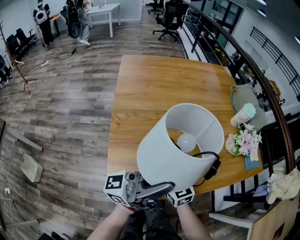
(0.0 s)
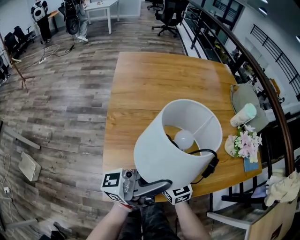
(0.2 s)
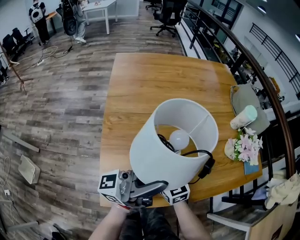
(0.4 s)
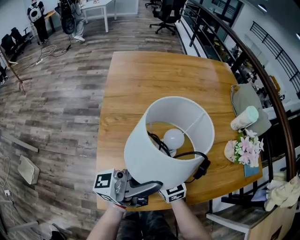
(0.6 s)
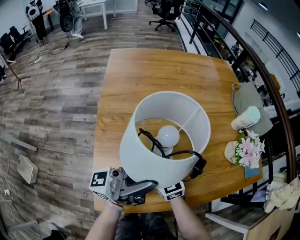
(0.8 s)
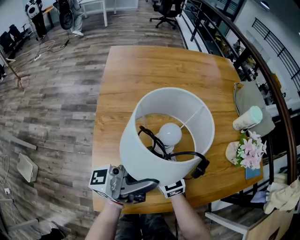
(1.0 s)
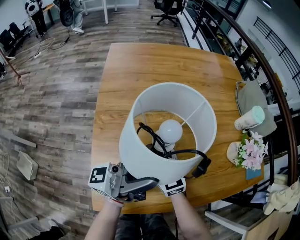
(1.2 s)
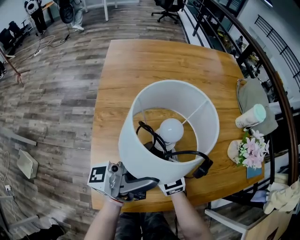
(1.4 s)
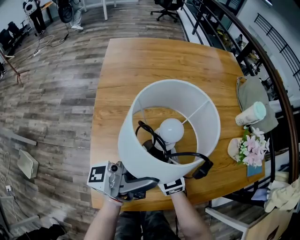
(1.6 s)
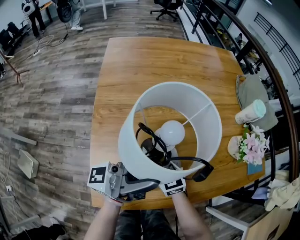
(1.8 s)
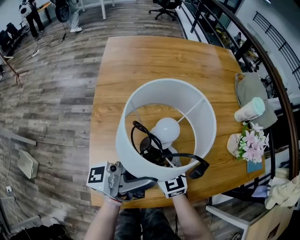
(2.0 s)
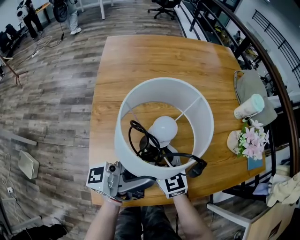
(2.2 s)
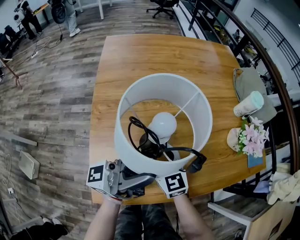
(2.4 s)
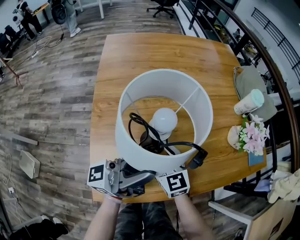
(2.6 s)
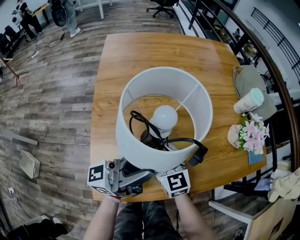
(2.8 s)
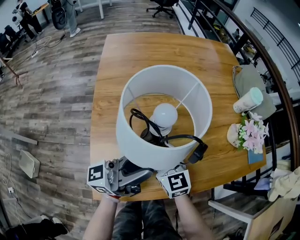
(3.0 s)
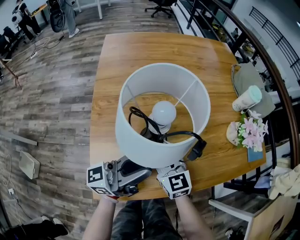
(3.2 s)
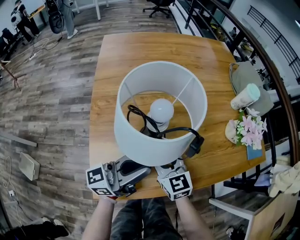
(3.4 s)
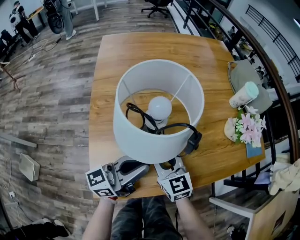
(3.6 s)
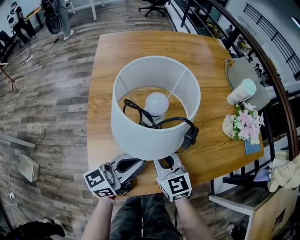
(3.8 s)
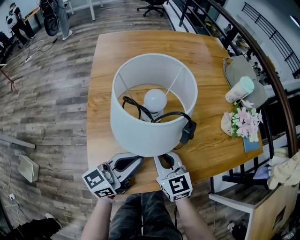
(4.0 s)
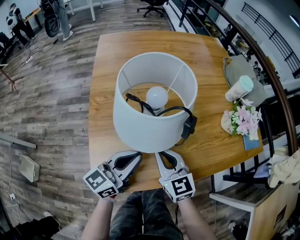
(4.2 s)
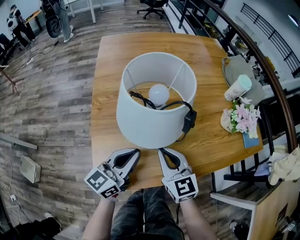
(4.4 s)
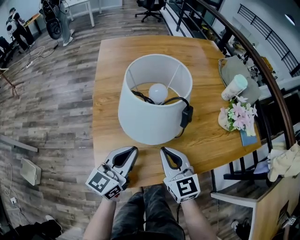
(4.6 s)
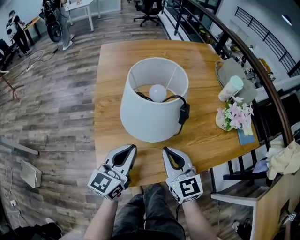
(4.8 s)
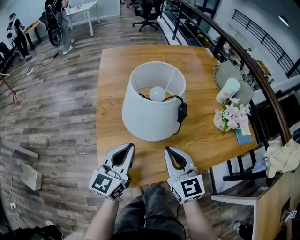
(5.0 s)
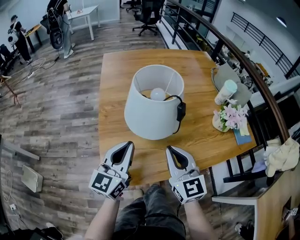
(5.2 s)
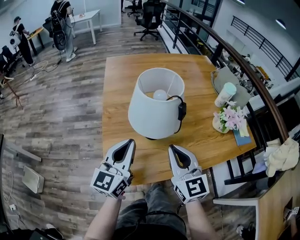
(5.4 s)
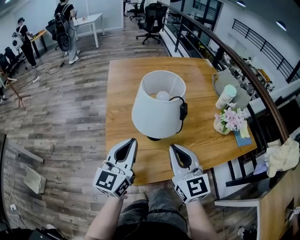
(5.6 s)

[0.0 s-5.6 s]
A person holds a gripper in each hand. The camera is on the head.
0.0 to 1.4 s: Both grippers travel together forward, some 10 cm.
1.4 to 2.8 s: The right gripper travels to the right by some 5 cm. Meanwhile the left gripper changes place by roughly 5 cm.
2.8 to 4.2 s: The left gripper shifts about 10 cm downward, and tilts its fingers about 30 degrees downward, while the right gripper travels backward by some 5 cm, and closes.
4.2 to 5.6 s: The right gripper shifts roughly 15 cm upward and backward. The left gripper is displaced upward and to the left by approximately 15 cm, and turns by approximately 30 degrees.

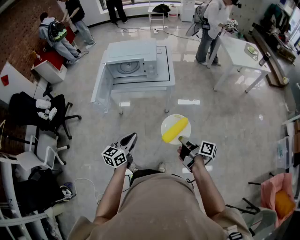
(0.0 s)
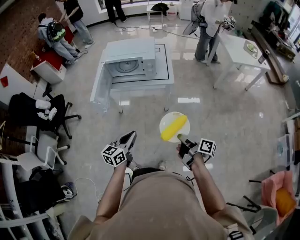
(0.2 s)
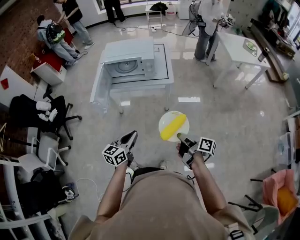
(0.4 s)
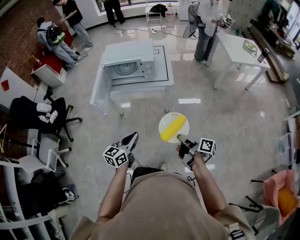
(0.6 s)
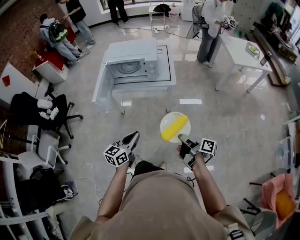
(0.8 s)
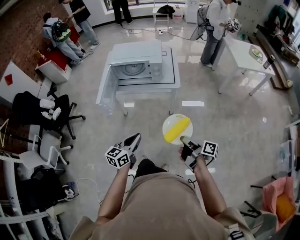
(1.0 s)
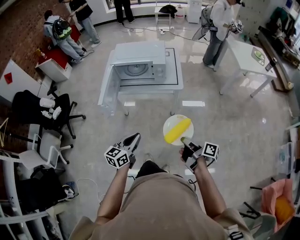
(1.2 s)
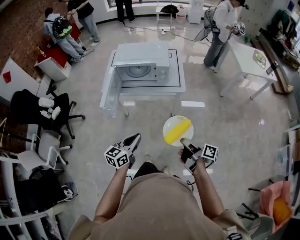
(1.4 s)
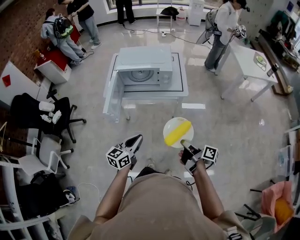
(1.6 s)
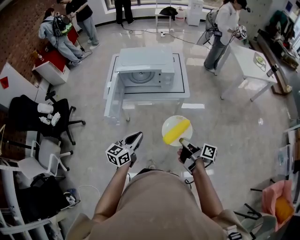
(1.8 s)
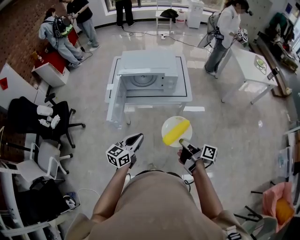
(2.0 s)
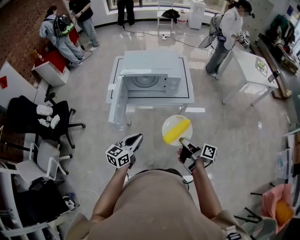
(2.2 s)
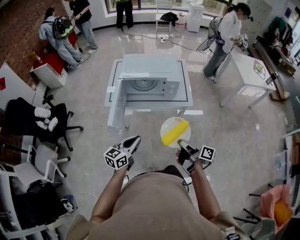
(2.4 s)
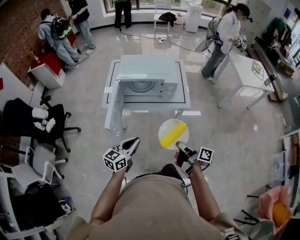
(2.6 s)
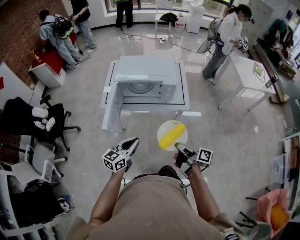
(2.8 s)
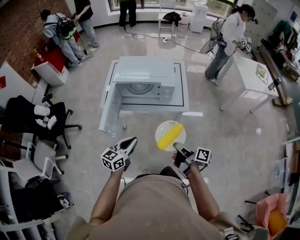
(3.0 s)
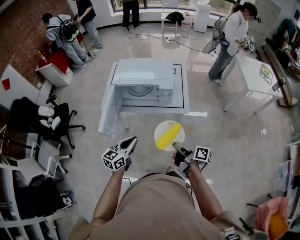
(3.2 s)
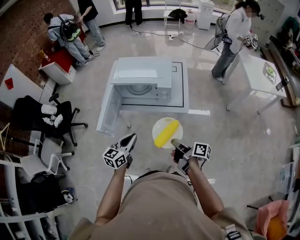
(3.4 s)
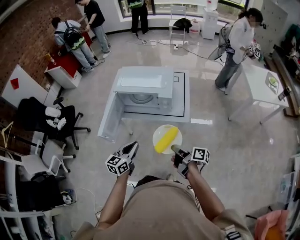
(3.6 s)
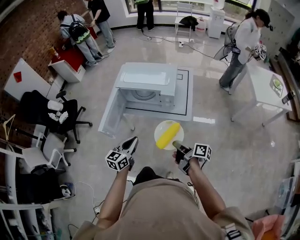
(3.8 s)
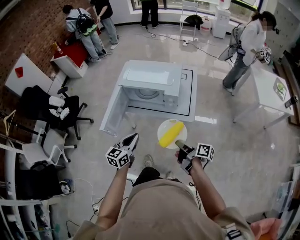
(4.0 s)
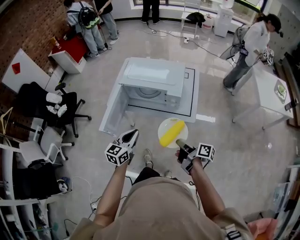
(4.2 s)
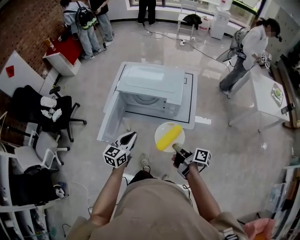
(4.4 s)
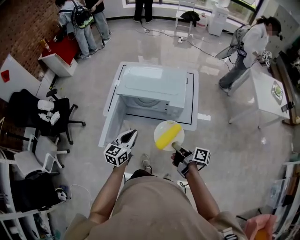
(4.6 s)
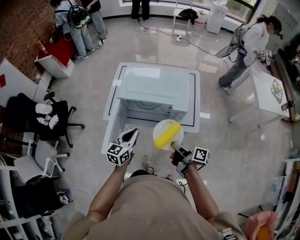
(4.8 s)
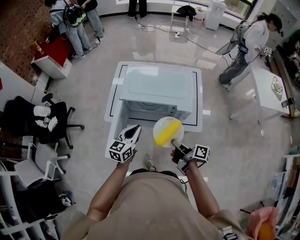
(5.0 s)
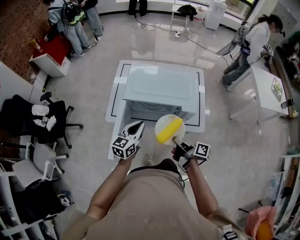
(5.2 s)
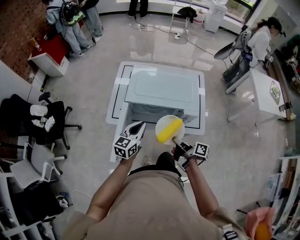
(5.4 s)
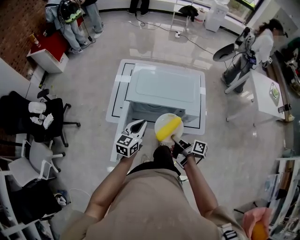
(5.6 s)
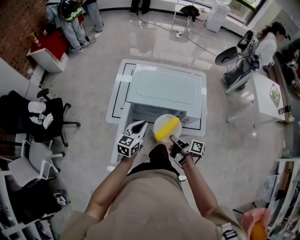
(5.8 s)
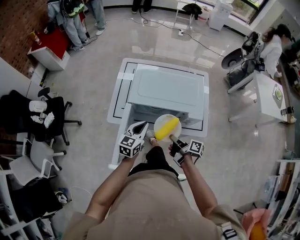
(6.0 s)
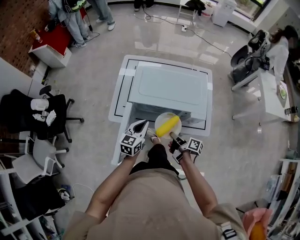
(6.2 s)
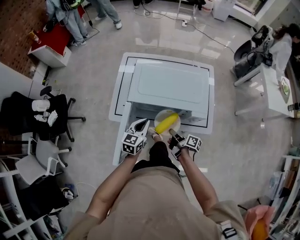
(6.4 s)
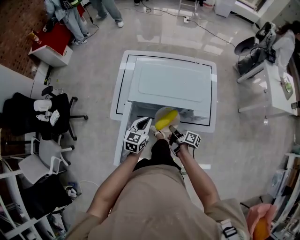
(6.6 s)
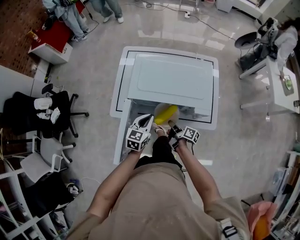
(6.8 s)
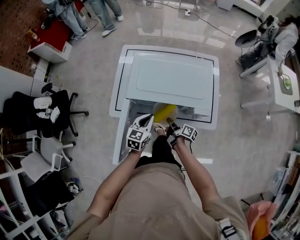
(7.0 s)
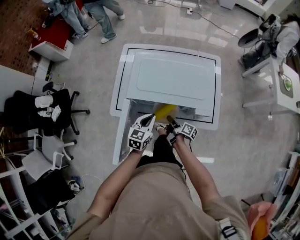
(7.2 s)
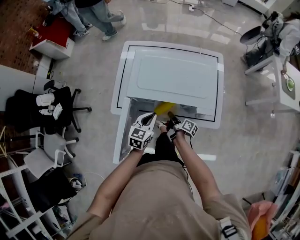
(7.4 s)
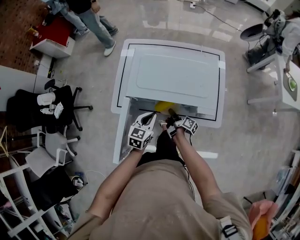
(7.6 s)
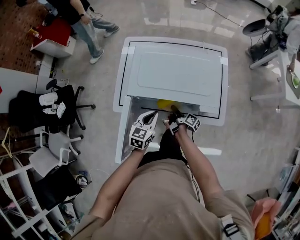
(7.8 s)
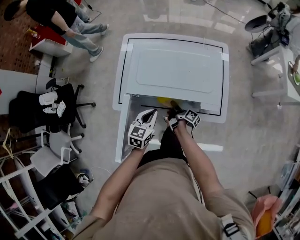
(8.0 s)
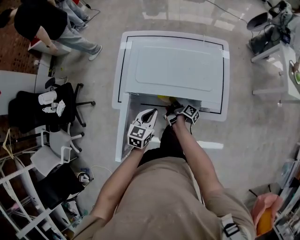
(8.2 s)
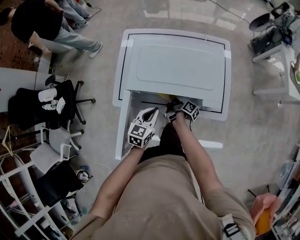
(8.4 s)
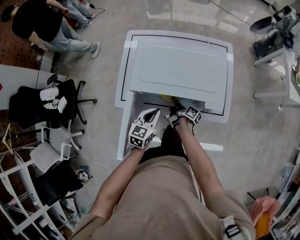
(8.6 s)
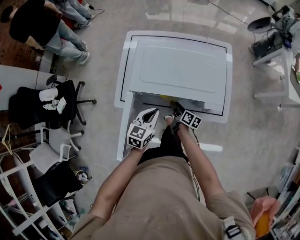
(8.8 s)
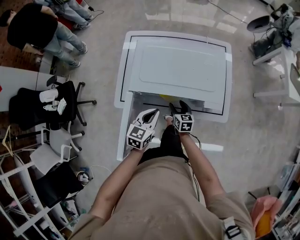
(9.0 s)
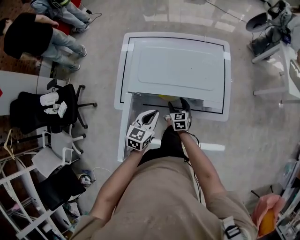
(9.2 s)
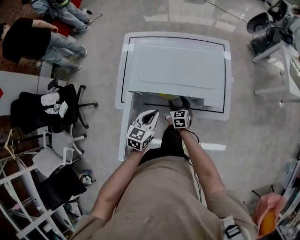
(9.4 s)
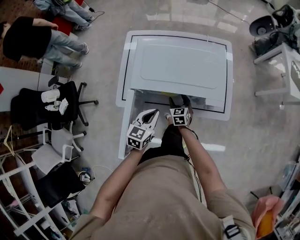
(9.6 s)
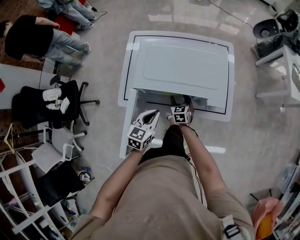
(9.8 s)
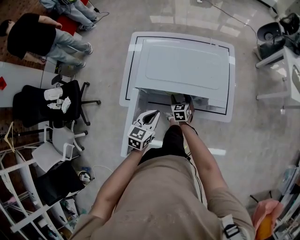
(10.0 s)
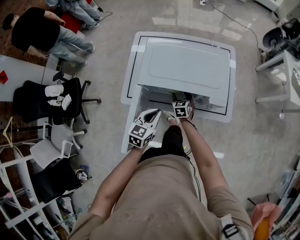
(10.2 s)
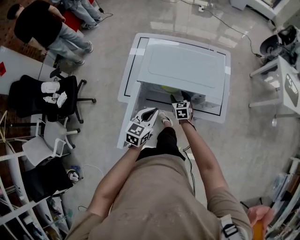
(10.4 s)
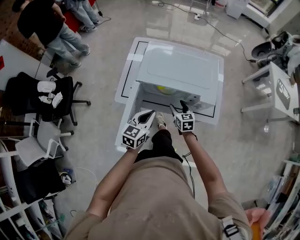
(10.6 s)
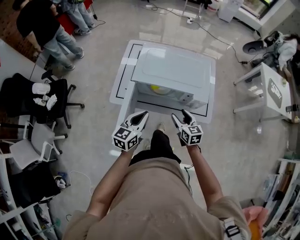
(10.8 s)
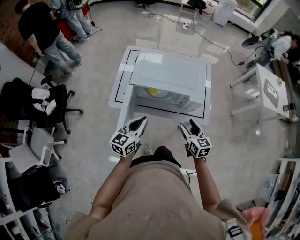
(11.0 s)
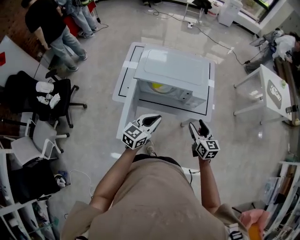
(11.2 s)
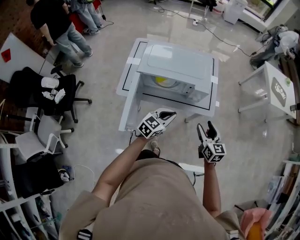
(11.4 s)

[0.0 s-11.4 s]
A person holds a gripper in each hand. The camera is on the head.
0.0 to 1.4 s: The left gripper travels forward by roughly 5 cm. The right gripper heads forward and to the left, covering about 10 cm.
1.4 to 2.8 s: The two grippers go some 15 cm forward and to the left.
2.8 to 4.2 s: The two grippers go approximately 15 cm forward and to the right.
4.2 to 5.6 s: The left gripper travels forward by about 20 cm, while the right gripper is displaced forward and to the left by about 25 cm.
5.6 to 7.2 s: The left gripper goes some 15 cm downward and forward; the right gripper shifts roughly 20 cm downward and forward.
7.2 to 8.6 s: The right gripper goes roughly 5 cm forward, and opens.
8.6 to 10.0 s: The right gripper twists approximately 80 degrees counterclockwise, seen from behind, and opens its fingers.
10.0 to 11.4 s: The right gripper goes approximately 40 cm upward, backward and to the right, and swivels roughly 20 degrees. Meanwhile the left gripper moves to the right, backward and upward, approximately 20 cm, and changes its angle by about 20 degrees.

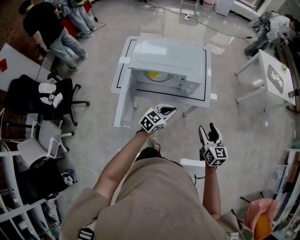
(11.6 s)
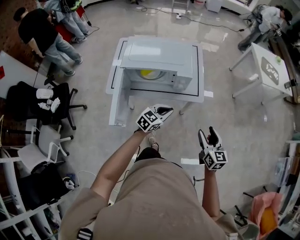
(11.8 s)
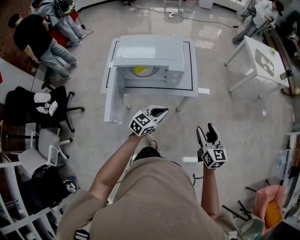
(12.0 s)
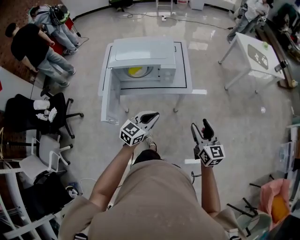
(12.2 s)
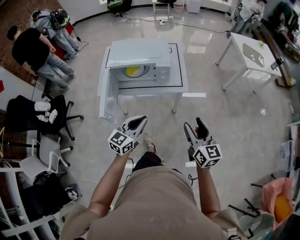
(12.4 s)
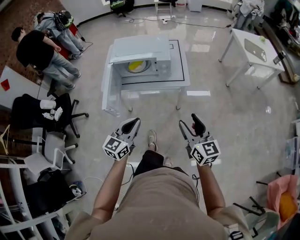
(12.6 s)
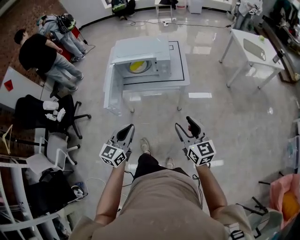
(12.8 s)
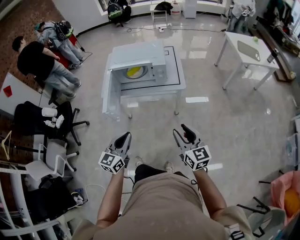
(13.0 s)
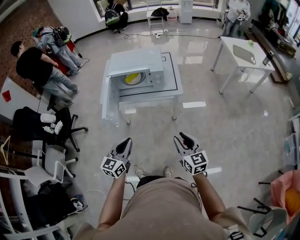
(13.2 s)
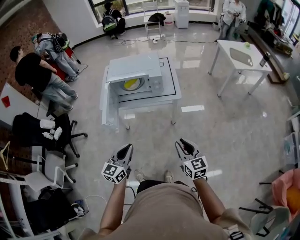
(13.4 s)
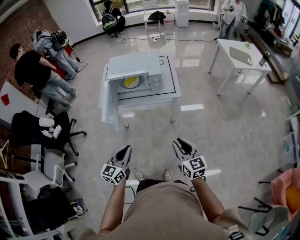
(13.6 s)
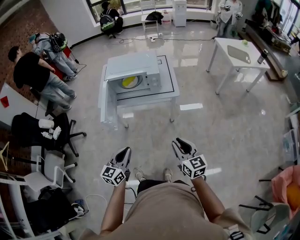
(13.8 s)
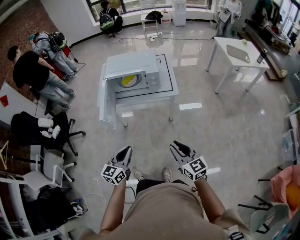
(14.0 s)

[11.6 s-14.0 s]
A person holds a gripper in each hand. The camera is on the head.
11.6 to 12.8 s: Both grippers travel together backward and upward, approximately 30 cm. The left gripper rotates approximately 30 degrees.
12.8 to 14.0 s: The grippers both shift backward by about 10 cm. The right gripper closes.

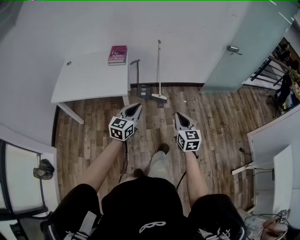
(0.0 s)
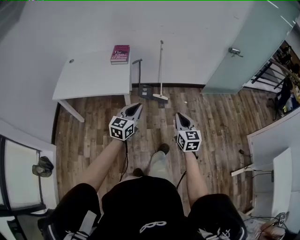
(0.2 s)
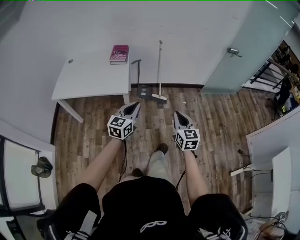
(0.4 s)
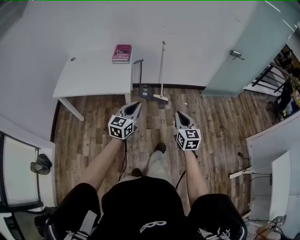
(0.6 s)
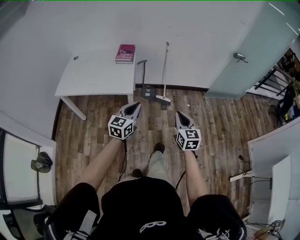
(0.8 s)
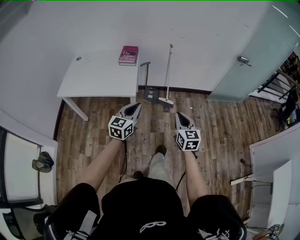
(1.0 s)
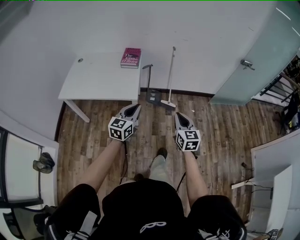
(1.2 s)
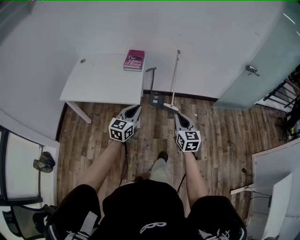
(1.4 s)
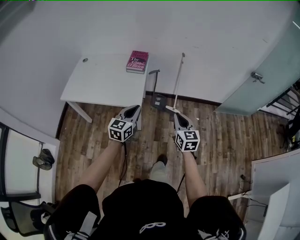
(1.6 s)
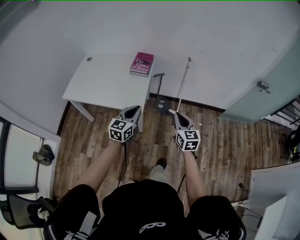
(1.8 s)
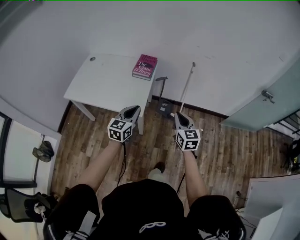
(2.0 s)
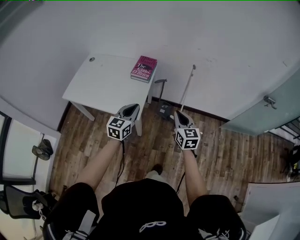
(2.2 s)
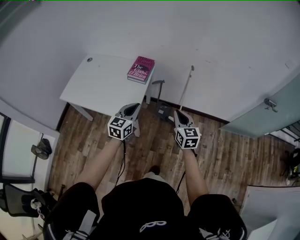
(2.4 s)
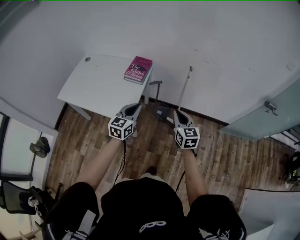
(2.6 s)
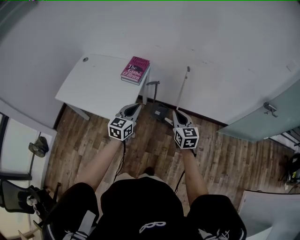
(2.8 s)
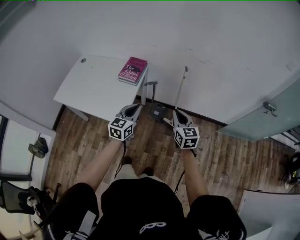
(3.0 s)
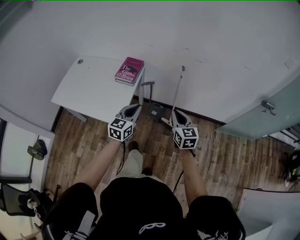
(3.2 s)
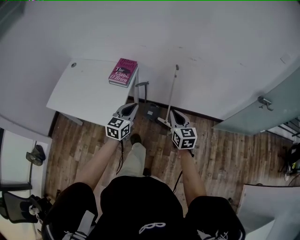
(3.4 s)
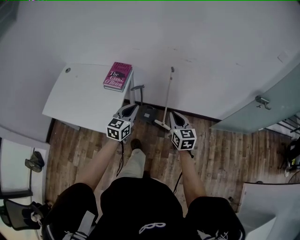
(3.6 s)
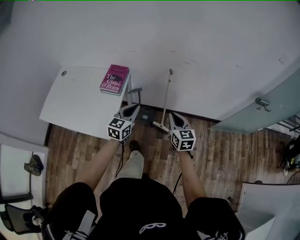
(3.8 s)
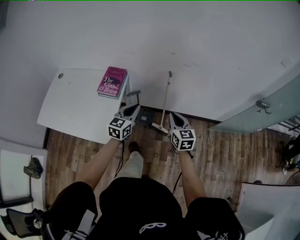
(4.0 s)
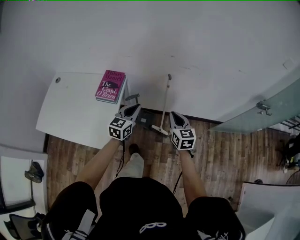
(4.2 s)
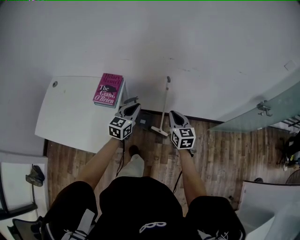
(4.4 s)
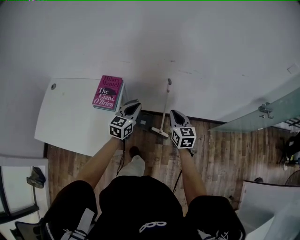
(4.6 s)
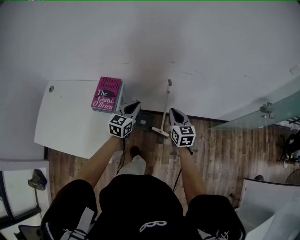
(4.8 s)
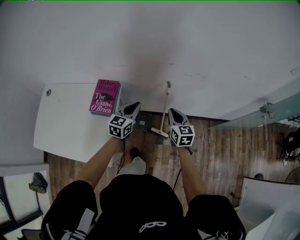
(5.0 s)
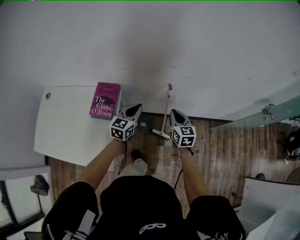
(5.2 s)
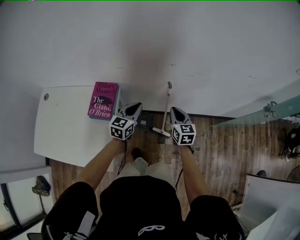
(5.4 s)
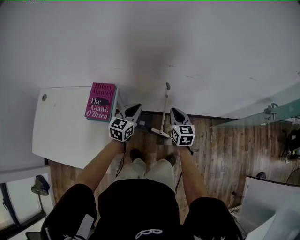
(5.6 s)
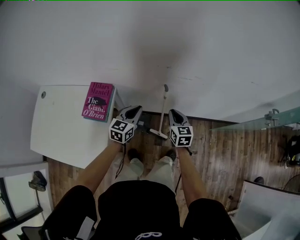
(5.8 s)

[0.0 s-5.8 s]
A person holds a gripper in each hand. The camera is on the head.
0.0 to 1.4 s: The left gripper moves to the left and forward, about 10 cm, while the right gripper heads forward and to the left, covering some 15 cm.
1.4 to 2.8 s: The two grippers go some 25 cm forward.
2.8 to 4.4 s: Both grippers travel together forward, about 25 cm.
4.4 to 5.8 s: The grippers both shift forward and downward by roughly 15 cm.
